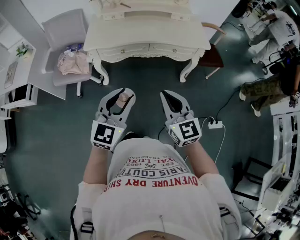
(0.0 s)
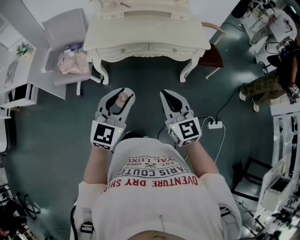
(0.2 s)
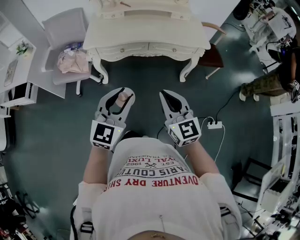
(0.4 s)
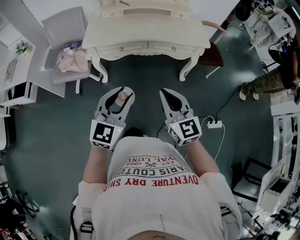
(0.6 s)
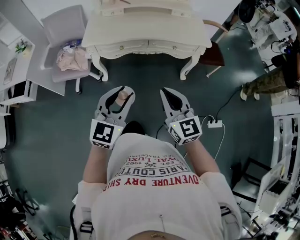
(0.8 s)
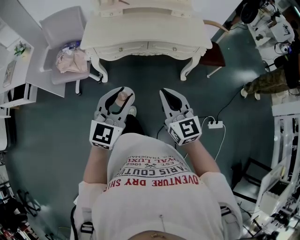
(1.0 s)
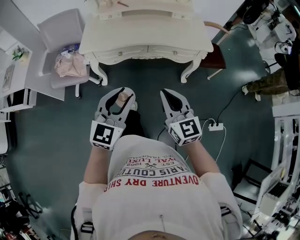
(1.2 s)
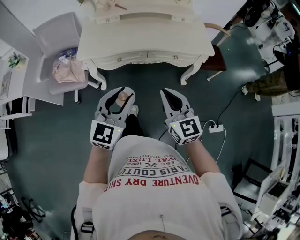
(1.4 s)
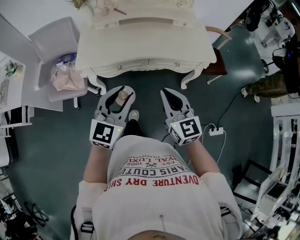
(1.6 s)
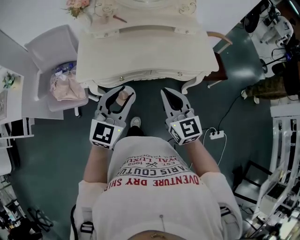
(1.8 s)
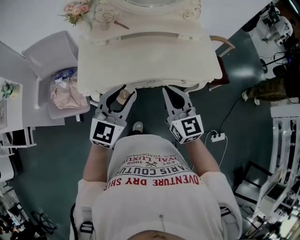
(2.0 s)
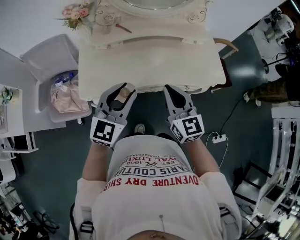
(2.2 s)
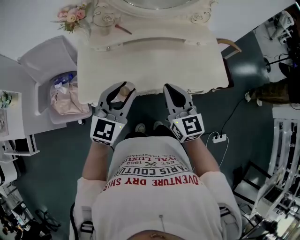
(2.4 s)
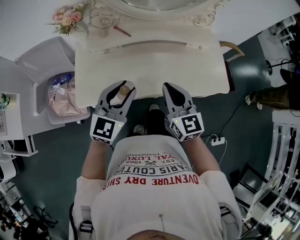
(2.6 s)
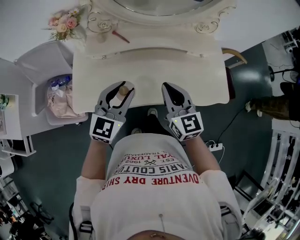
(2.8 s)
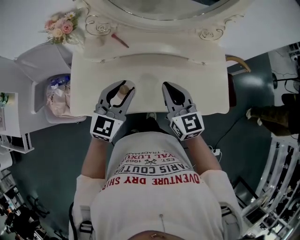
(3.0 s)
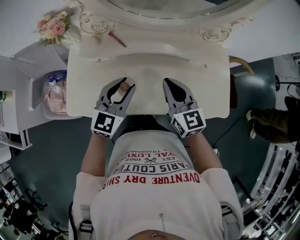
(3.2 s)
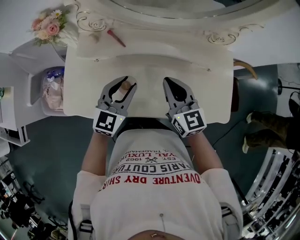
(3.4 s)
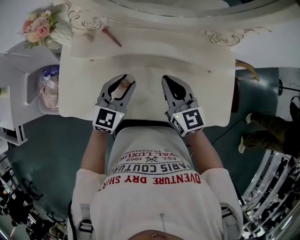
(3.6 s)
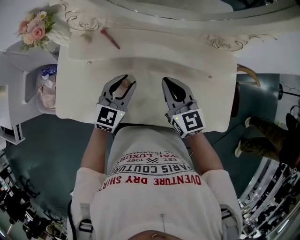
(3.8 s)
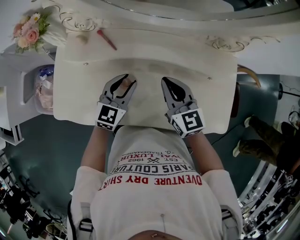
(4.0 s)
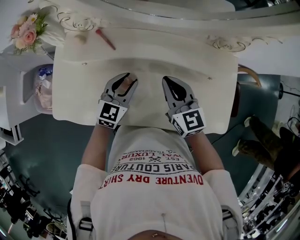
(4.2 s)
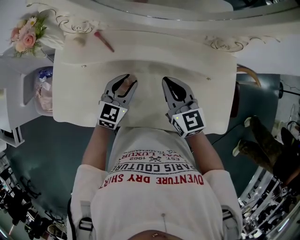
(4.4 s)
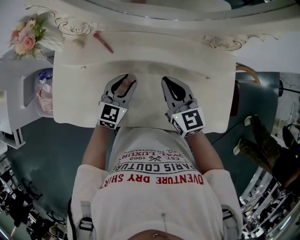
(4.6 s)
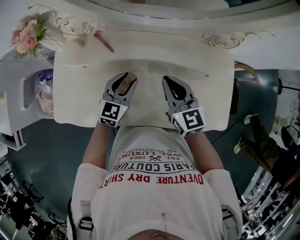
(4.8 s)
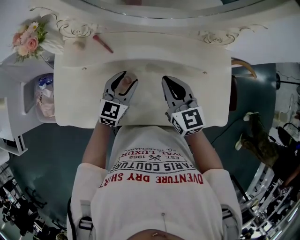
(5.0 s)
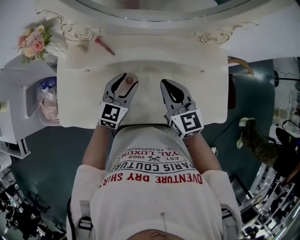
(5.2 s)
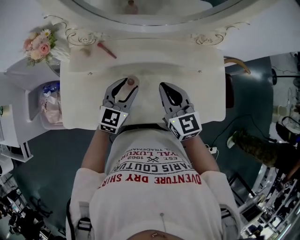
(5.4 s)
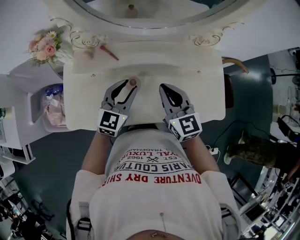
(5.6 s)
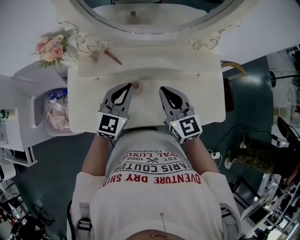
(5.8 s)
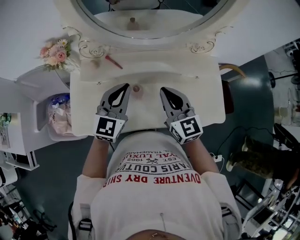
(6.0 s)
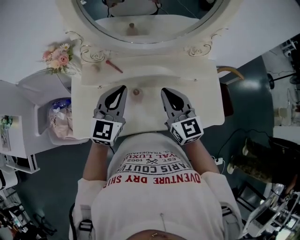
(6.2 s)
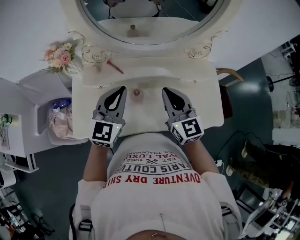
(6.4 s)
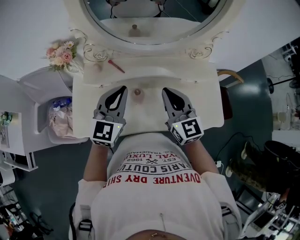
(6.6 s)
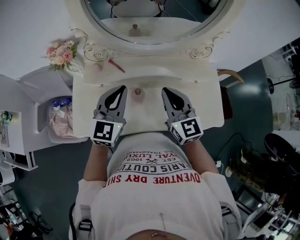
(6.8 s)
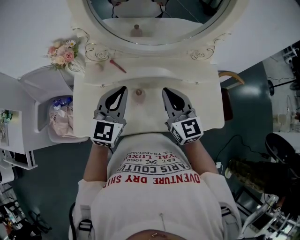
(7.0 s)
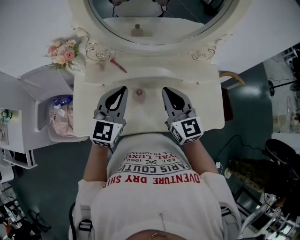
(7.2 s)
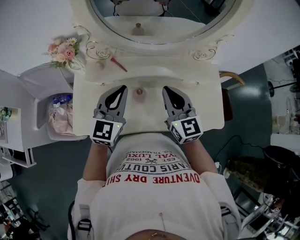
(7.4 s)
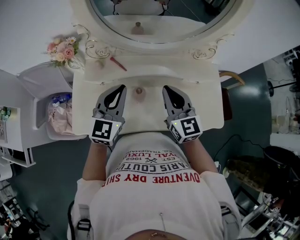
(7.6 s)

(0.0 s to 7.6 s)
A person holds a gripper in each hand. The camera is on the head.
0.0 s - 1.6 s: Both grippers move forward, roughly 20 cm.
1.6 s - 3.0 s: Both grippers are carried forward, approximately 40 cm.
3.0 s - 4.6 s: The left gripper shifts some 20 cm downward and forward; the right gripper is displaced forward, downward and to the right by roughly 15 cm.
4.6 s - 6.0 s: The left gripper shifts some 20 cm upward, and closes its fingers; the right gripper goes about 15 cm upward and backward.
6.0 s - 7.6 s: The grippers make only small movements.

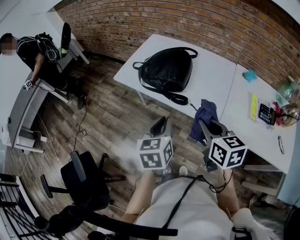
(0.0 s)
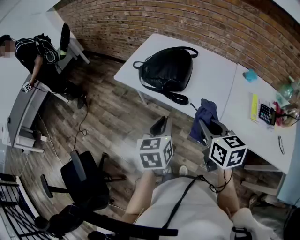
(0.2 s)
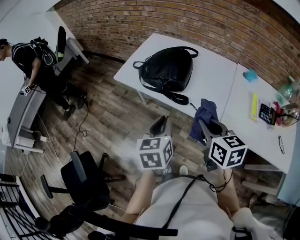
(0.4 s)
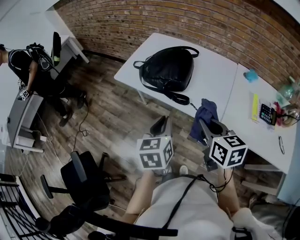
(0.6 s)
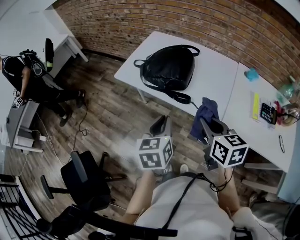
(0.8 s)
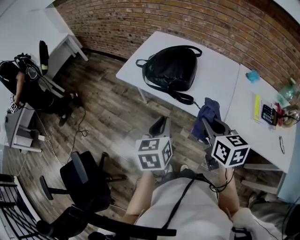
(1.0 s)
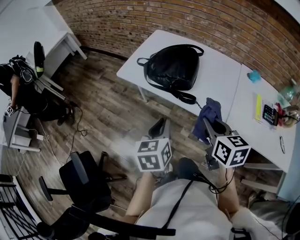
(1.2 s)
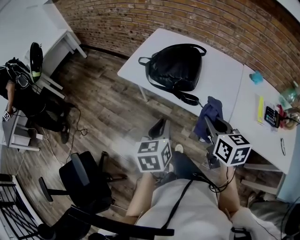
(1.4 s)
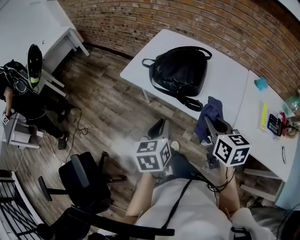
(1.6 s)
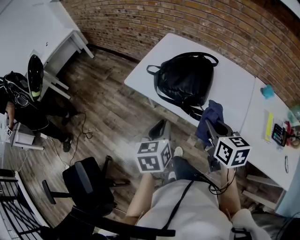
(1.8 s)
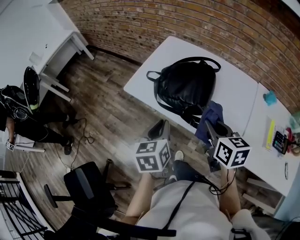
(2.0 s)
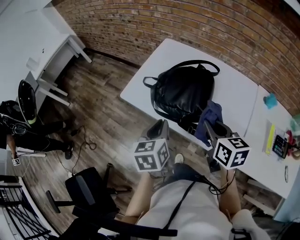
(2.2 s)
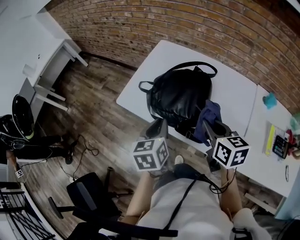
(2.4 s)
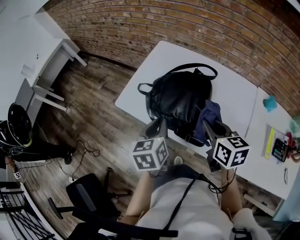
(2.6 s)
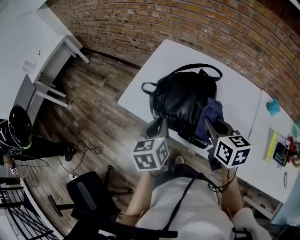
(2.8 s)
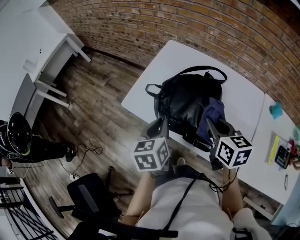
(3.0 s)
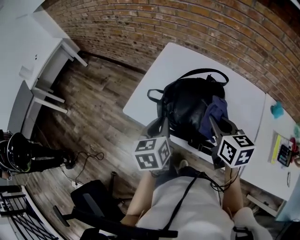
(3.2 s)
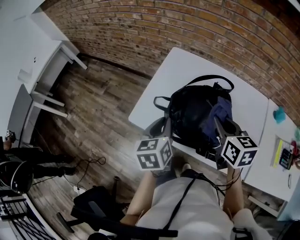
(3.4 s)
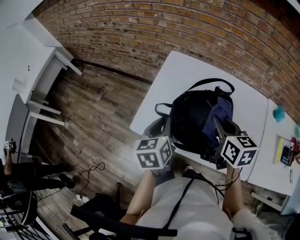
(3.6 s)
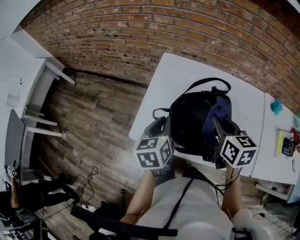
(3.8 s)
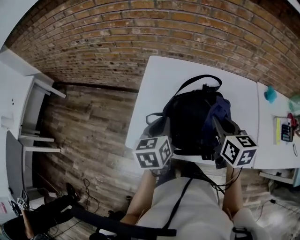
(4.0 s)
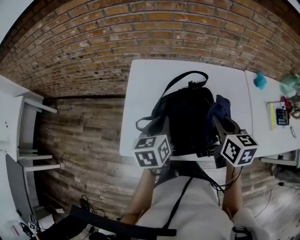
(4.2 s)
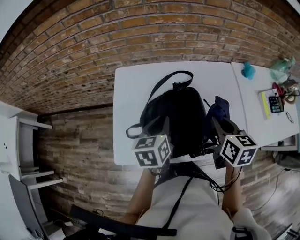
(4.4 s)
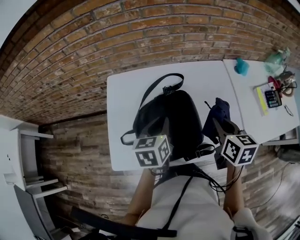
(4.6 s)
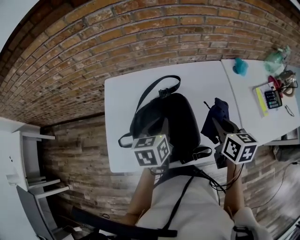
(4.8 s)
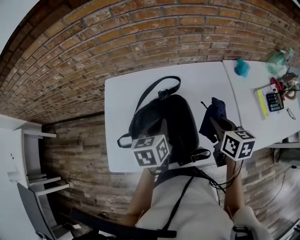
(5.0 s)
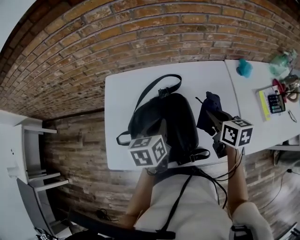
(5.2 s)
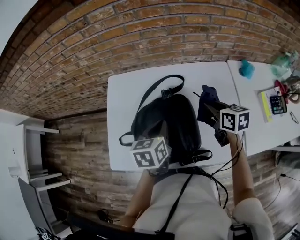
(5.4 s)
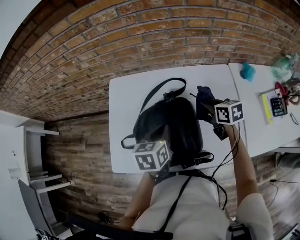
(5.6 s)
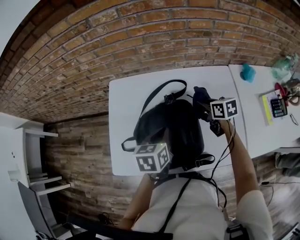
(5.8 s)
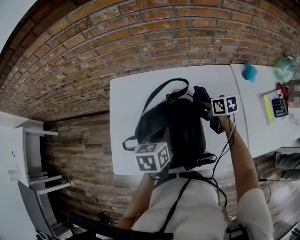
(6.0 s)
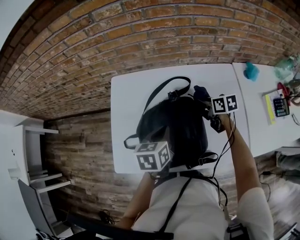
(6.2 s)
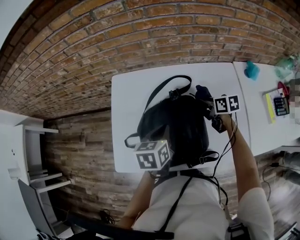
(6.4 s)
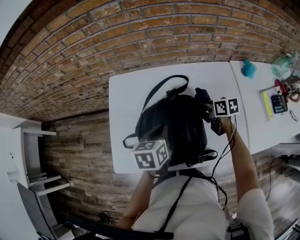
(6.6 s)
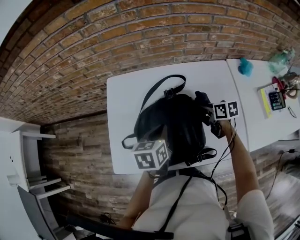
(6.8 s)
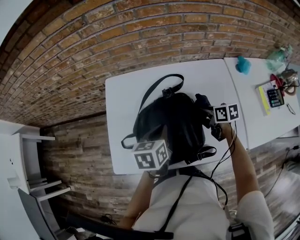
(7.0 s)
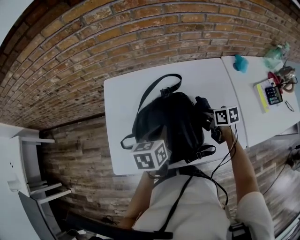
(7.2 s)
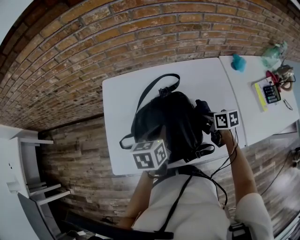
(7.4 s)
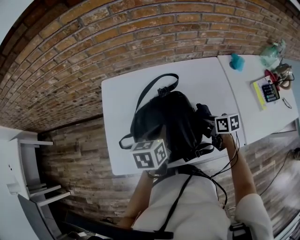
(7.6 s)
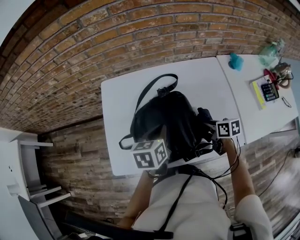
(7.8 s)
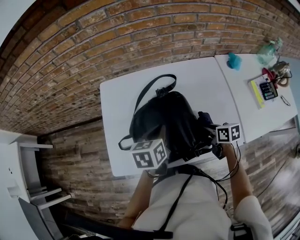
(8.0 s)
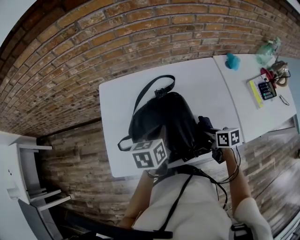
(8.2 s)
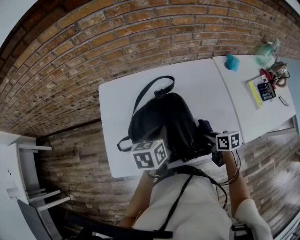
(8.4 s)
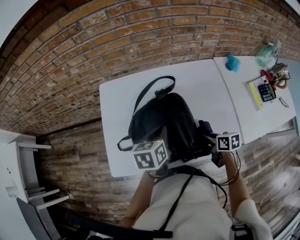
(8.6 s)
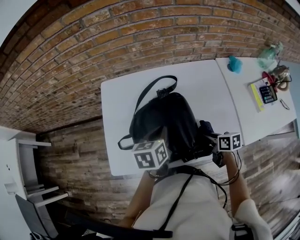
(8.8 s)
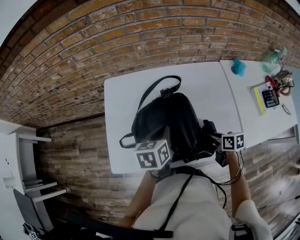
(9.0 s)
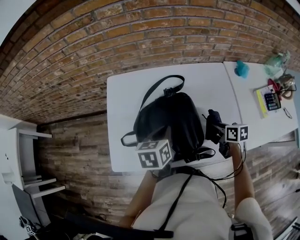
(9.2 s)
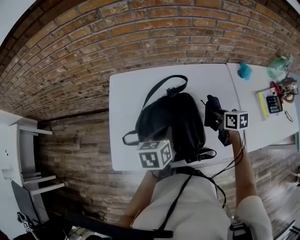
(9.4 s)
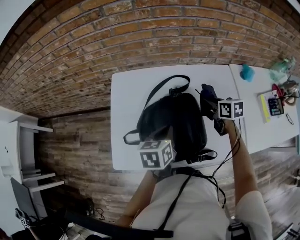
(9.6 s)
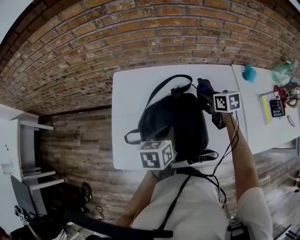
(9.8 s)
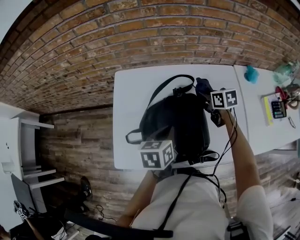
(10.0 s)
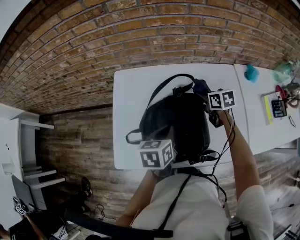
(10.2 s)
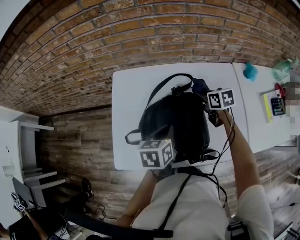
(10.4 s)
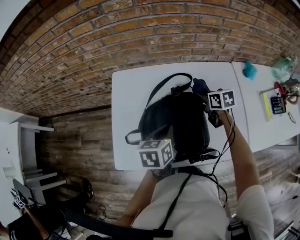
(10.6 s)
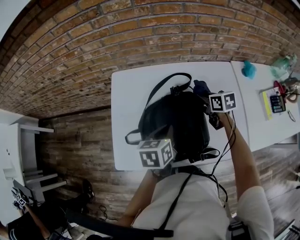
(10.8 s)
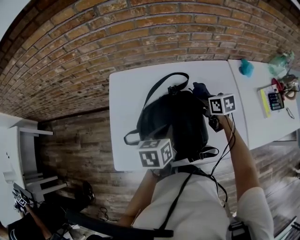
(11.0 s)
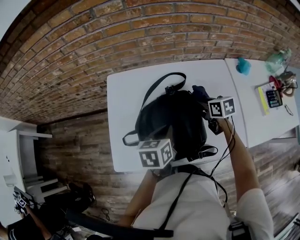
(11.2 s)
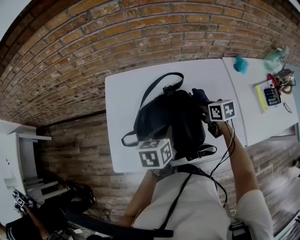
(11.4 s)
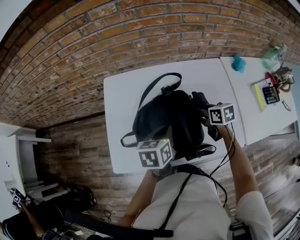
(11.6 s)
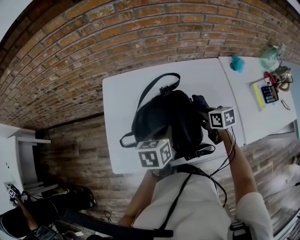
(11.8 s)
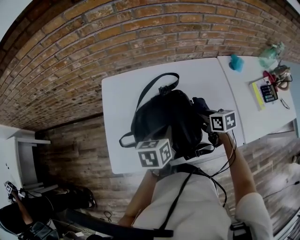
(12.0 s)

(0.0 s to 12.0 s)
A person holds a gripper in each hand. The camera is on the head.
0.0 s - 1.6 s: The right gripper shifts about 10 cm forward and to the left; the left gripper shifts approximately 10 cm to the left and forward.
1.6 s - 3.0 s: Both grippers move forward, about 25 cm.
3.0 s - 4.4 s: The left gripper shifts by about 15 cm, and changes its angle by roughly 40 degrees, while the right gripper turns by roughly 40 degrees.
4.4 s - 6.0 s: The right gripper shifts some 20 cm forward and downward, and changes its angle by some 30 degrees. Meanwhile the left gripper goes some 5 cm to the right.
6.0 s - 7.6 s: The right gripper shifts some 15 cm backward.
7.6 s - 9.0 s: The right gripper moves backward, roughly 5 cm.
9.0 s - 10.4 s: The right gripper shifts approximately 20 cm forward, and turns by about 20 degrees.
10.4 s - 12.0 s: The right gripper goes about 10 cm backward.

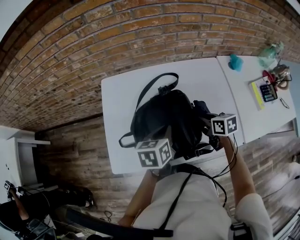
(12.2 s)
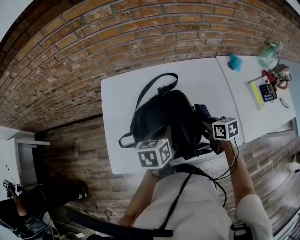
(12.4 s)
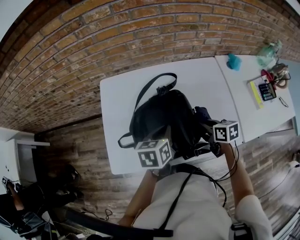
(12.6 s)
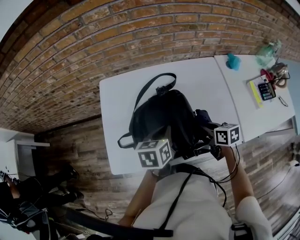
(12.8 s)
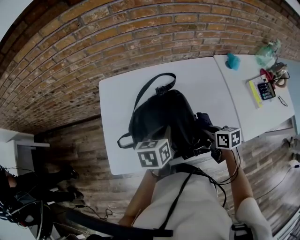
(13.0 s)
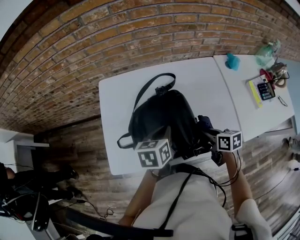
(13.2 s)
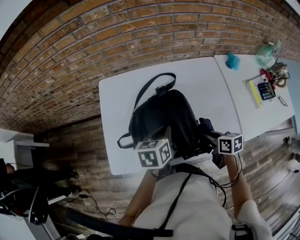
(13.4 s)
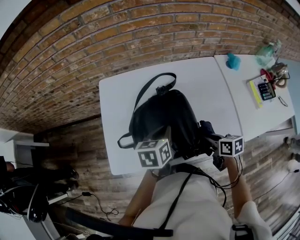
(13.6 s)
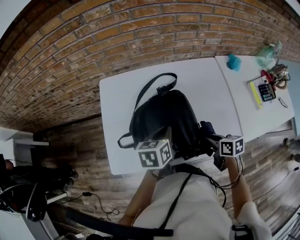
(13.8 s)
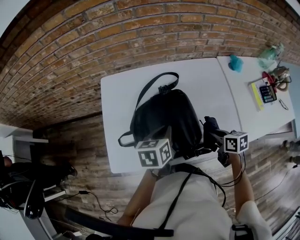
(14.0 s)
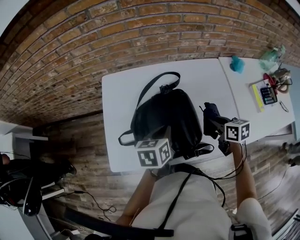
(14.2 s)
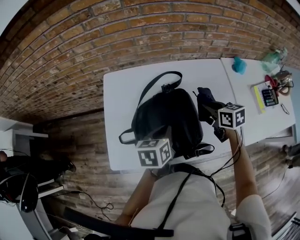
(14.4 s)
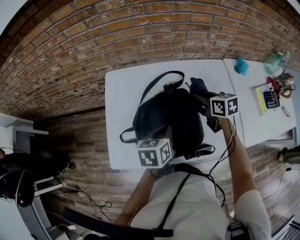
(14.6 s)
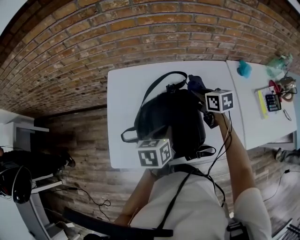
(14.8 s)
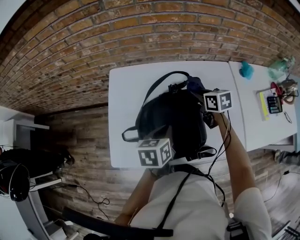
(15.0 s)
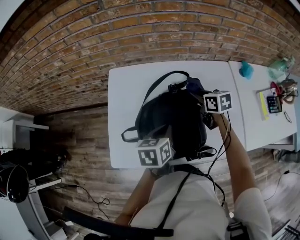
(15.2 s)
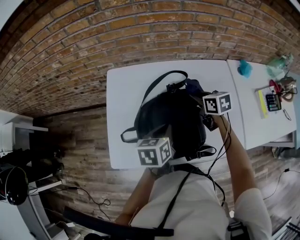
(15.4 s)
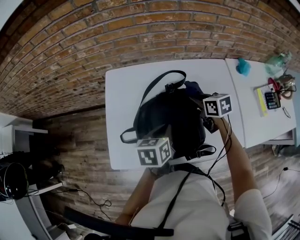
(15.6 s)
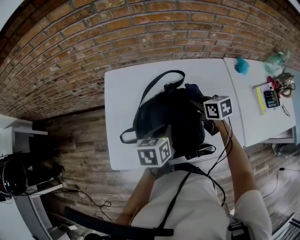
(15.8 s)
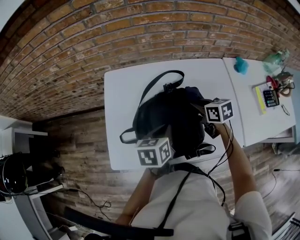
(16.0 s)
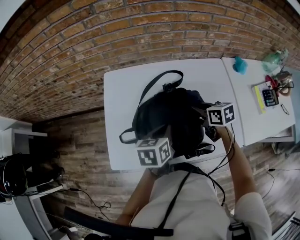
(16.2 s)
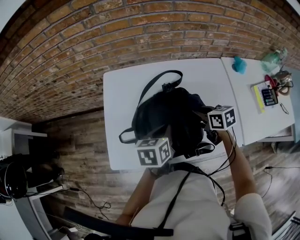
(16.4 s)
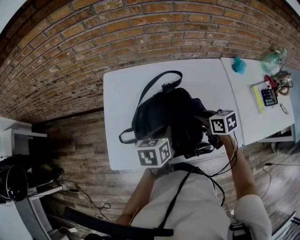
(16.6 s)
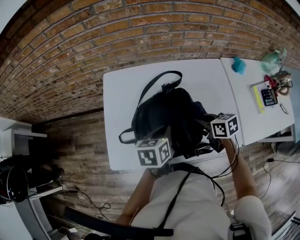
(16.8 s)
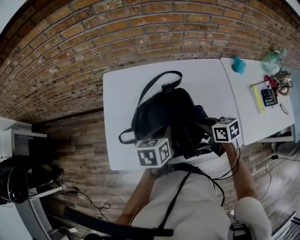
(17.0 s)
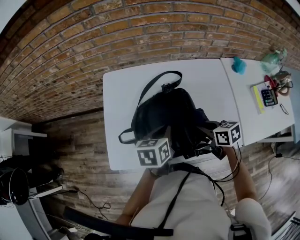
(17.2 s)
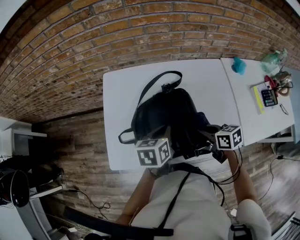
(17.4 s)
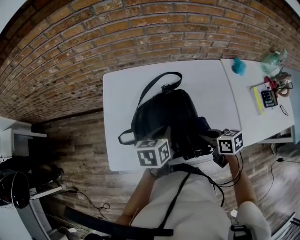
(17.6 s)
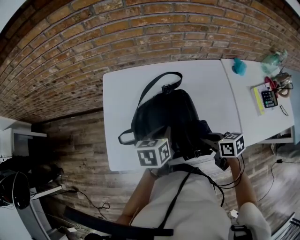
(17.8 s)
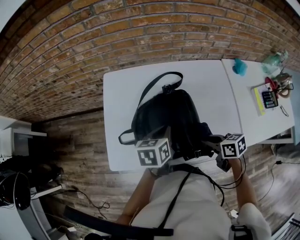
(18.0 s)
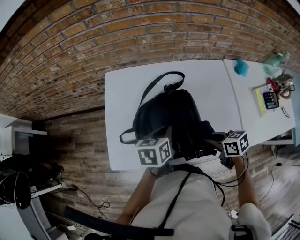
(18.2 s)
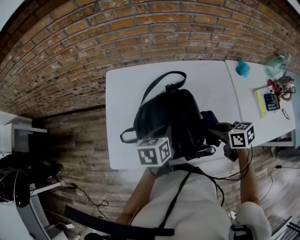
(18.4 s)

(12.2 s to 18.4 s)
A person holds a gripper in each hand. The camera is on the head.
12.2 s - 13.8 s: The right gripper moves backward, about 10 cm.
13.8 s - 15.4 s: The right gripper goes roughly 20 cm forward.
15.4 s - 16.8 s: The right gripper travels backward by about 10 cm.
